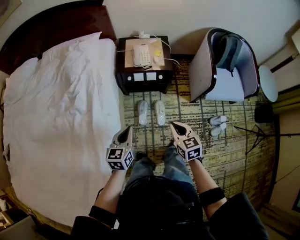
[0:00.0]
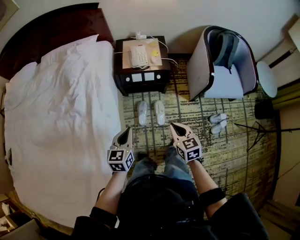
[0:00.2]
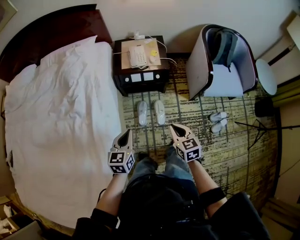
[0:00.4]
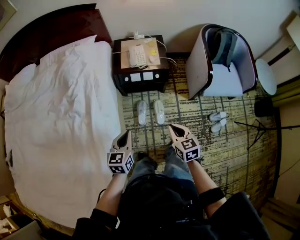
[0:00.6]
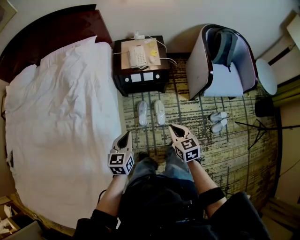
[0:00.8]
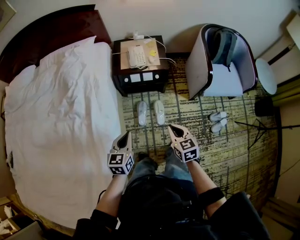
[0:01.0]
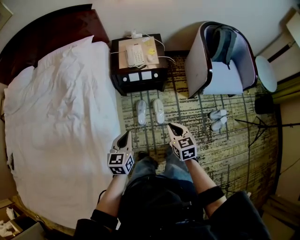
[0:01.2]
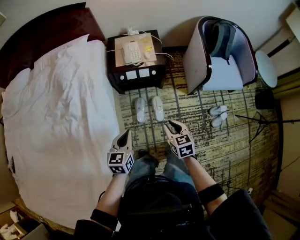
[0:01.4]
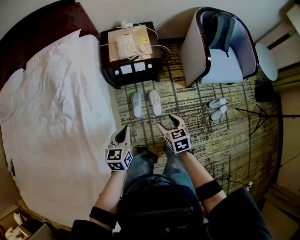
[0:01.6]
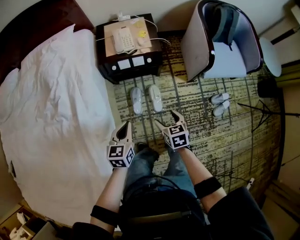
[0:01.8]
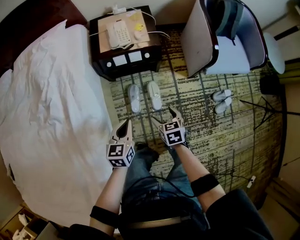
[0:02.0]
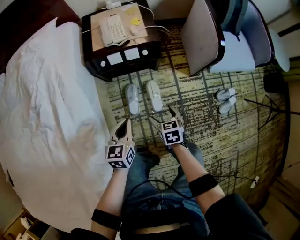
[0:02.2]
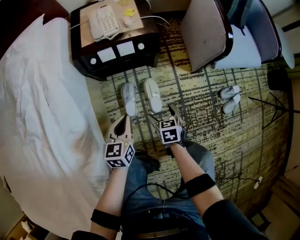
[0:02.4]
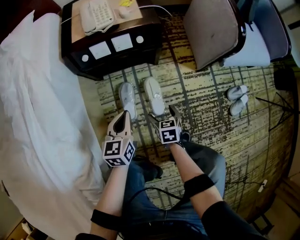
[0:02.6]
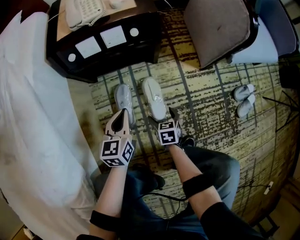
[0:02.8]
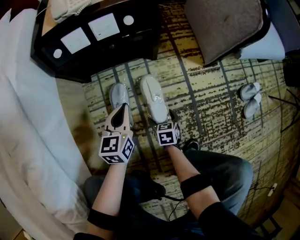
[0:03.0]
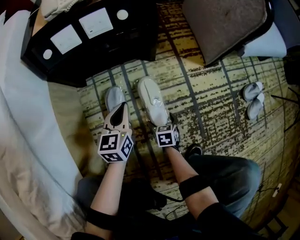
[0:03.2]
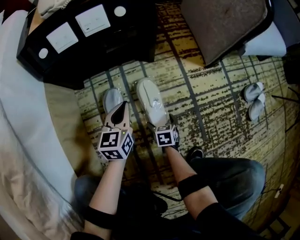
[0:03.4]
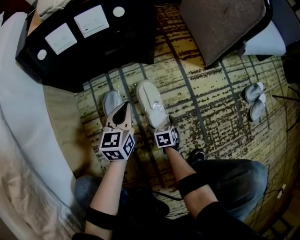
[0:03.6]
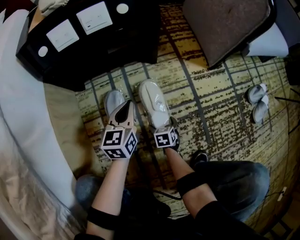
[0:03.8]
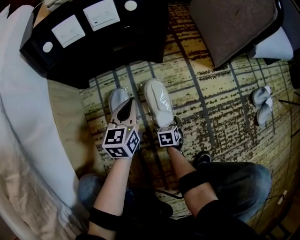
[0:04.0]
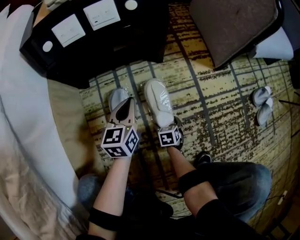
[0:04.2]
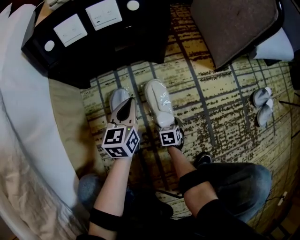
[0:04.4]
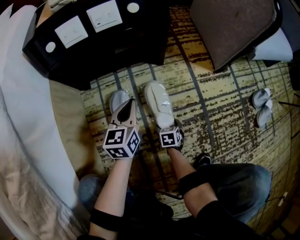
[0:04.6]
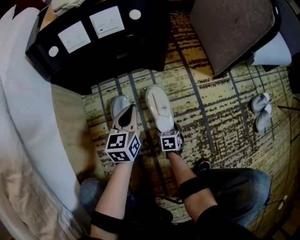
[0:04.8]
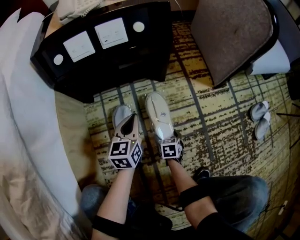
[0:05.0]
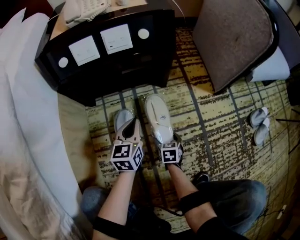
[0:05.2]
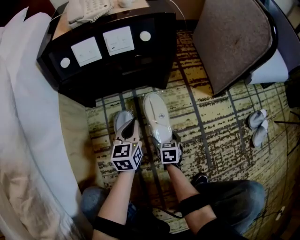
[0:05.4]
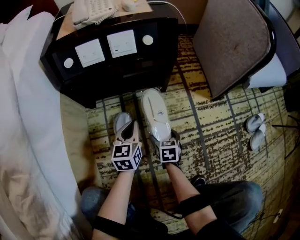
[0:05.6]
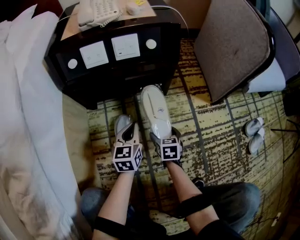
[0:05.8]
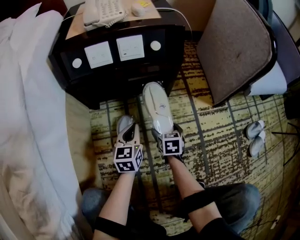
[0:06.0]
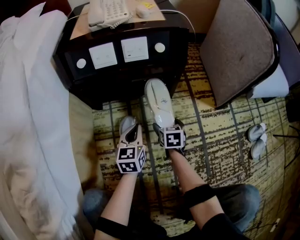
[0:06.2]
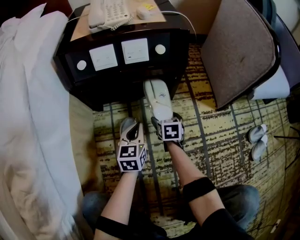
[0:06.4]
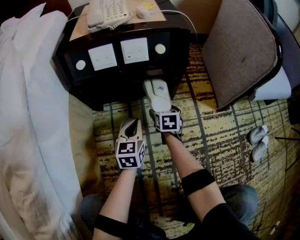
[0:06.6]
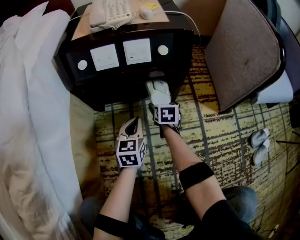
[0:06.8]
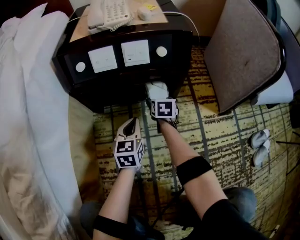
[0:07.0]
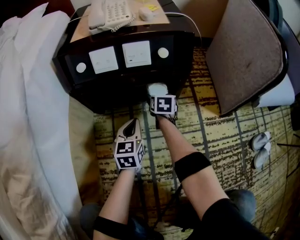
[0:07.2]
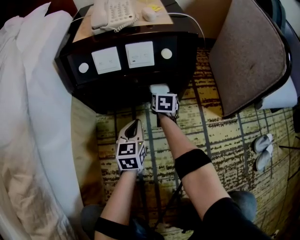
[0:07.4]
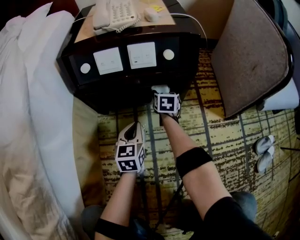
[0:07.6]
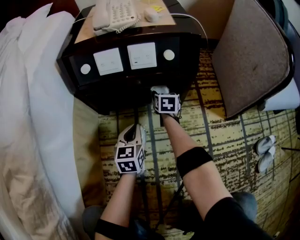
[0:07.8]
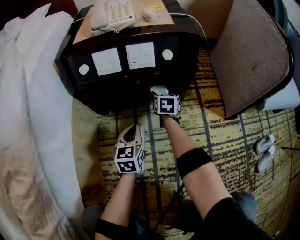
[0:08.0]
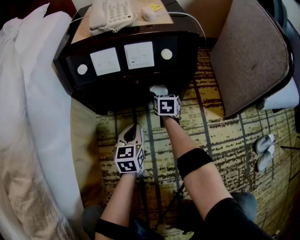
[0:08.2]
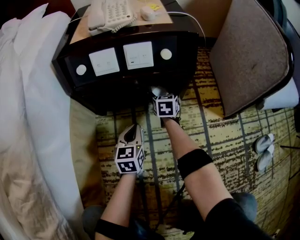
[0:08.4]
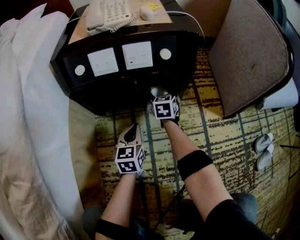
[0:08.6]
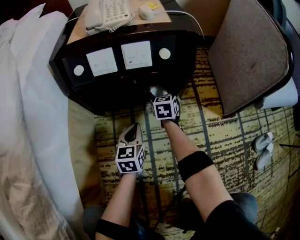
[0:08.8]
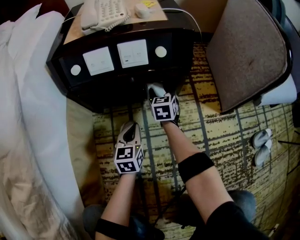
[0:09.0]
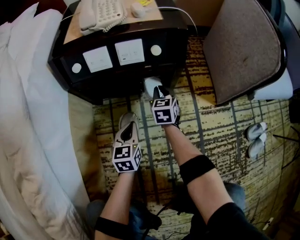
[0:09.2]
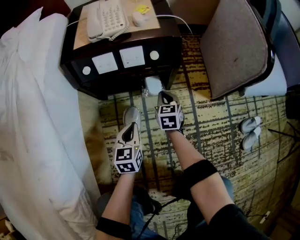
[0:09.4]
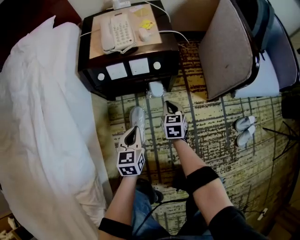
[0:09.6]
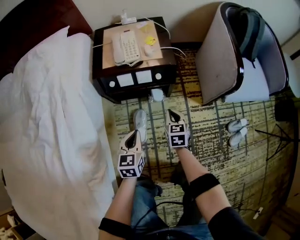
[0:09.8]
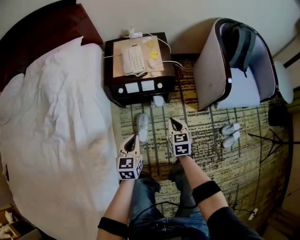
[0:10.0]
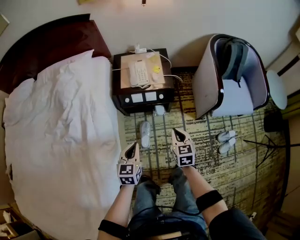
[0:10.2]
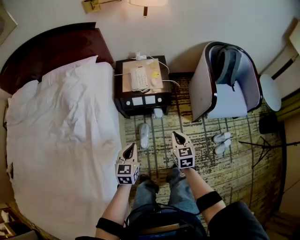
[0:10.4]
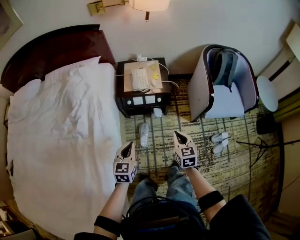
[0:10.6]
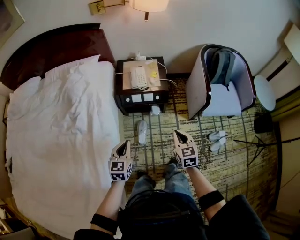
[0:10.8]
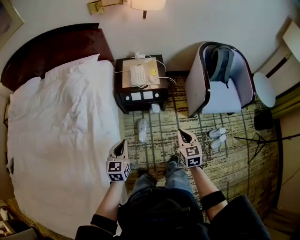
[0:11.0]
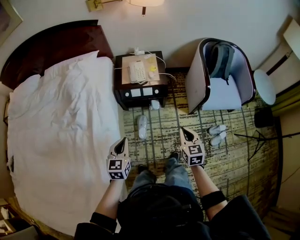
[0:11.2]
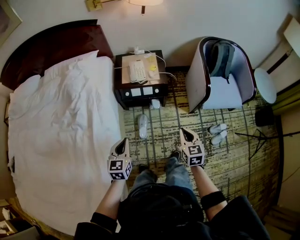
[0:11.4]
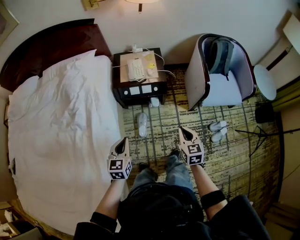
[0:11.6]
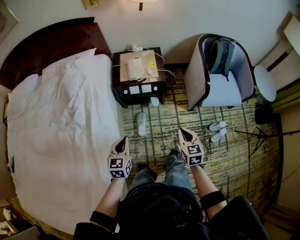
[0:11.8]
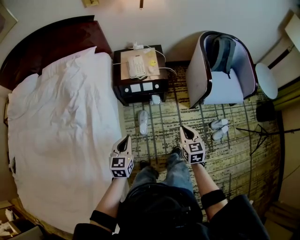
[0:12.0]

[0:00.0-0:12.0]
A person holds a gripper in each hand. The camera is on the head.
0:00.0 to 0:01.6: The right gripper heads downward, covering approximately 10 cm, and opens. The left gripper heads downward, covering approximately 5 cm.
0:01.6 to 0:03.0: The grippers both shift downward by roughly 60 cm. The right gripper opens.
0:03.0 to 0:04.4: The left gripper is displaced downward by roughly 10 cm, while the right gripper moves downward, some 15 cm.
0:04.4 to 0:06.0: The right gripper moves upward and forward, about 20 cm.
0:06.0 to 0:07.6: The right gripper shifts some 25 cm forward, while the left gripper heads forward, covering some 5 cm.
0:07.6 to 0:09.0: The grippers move only a little.
0:09.0 to 0:10.4: The right gripper shifts approximately 70 cm upward and backward, and closes up, while the left gripper shifts about 70 cm upward.
0:10.4 to 0:12.0: The two grippers go roughly 10 cm backward.

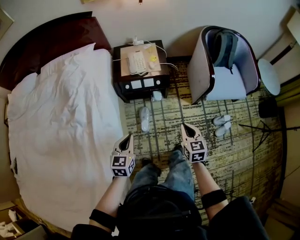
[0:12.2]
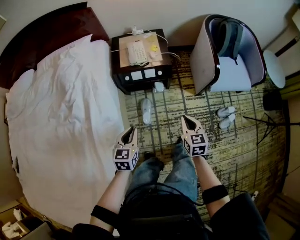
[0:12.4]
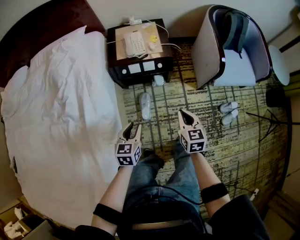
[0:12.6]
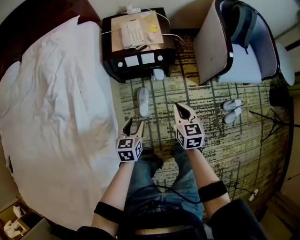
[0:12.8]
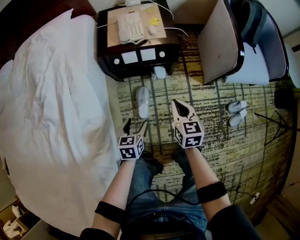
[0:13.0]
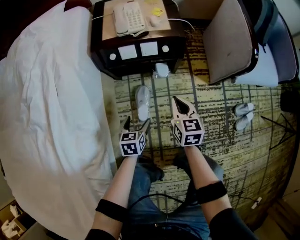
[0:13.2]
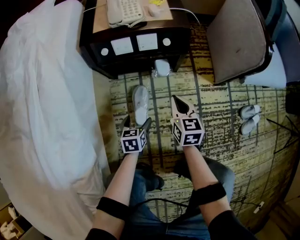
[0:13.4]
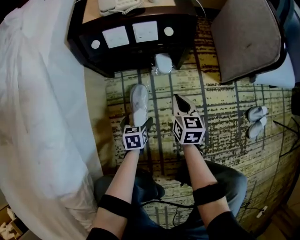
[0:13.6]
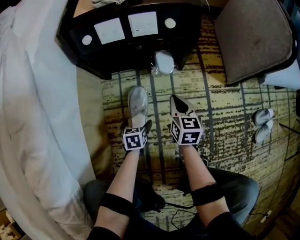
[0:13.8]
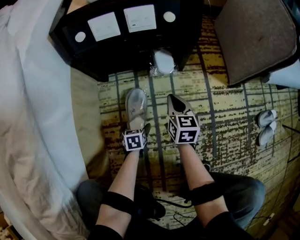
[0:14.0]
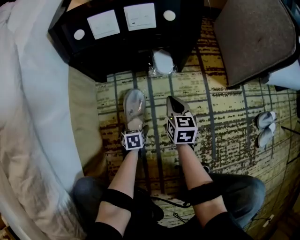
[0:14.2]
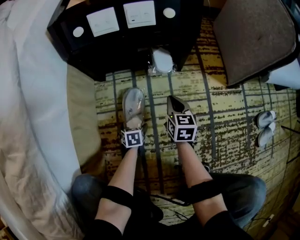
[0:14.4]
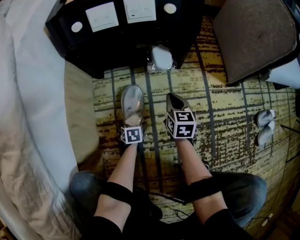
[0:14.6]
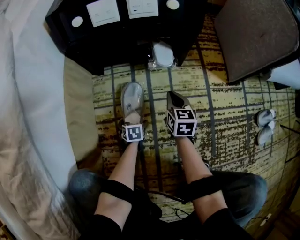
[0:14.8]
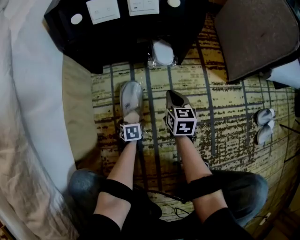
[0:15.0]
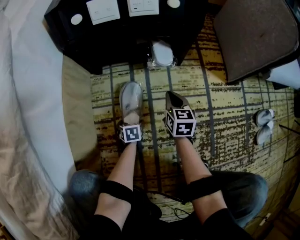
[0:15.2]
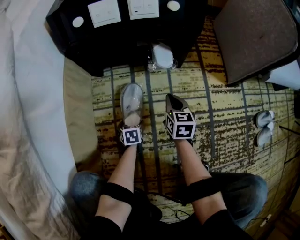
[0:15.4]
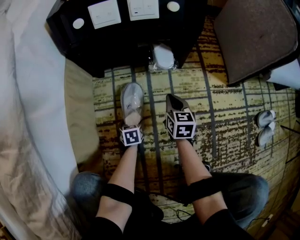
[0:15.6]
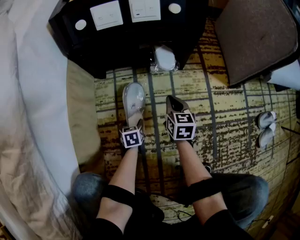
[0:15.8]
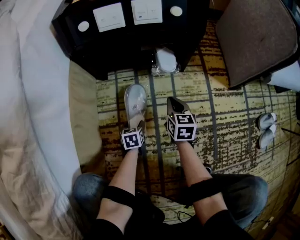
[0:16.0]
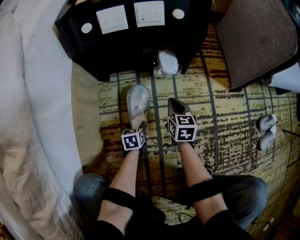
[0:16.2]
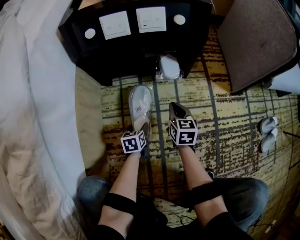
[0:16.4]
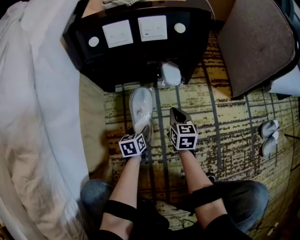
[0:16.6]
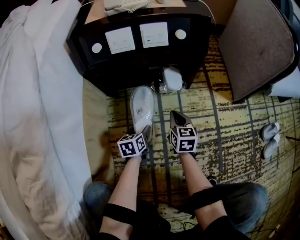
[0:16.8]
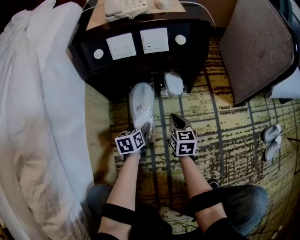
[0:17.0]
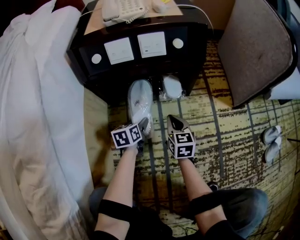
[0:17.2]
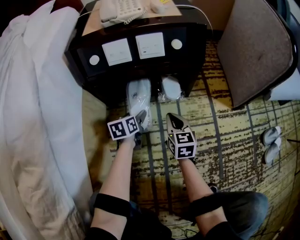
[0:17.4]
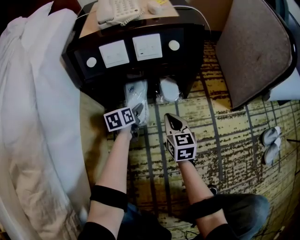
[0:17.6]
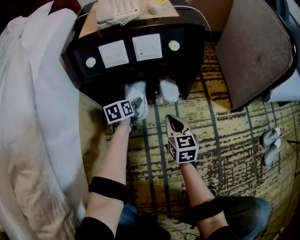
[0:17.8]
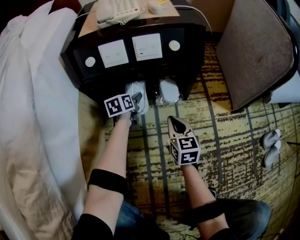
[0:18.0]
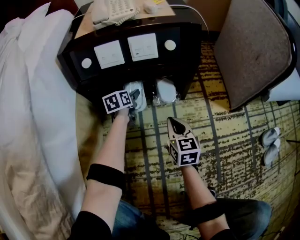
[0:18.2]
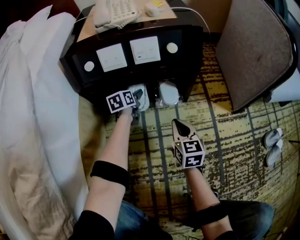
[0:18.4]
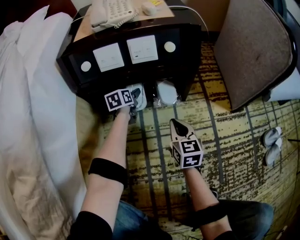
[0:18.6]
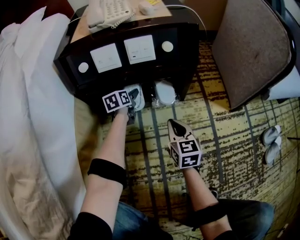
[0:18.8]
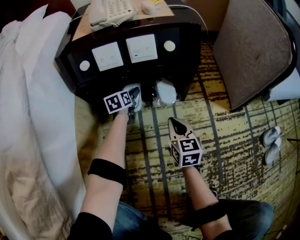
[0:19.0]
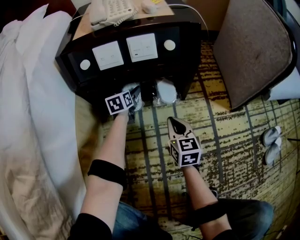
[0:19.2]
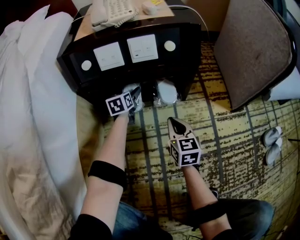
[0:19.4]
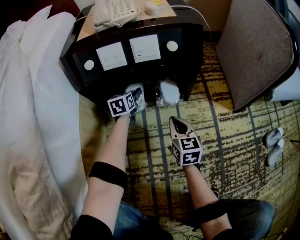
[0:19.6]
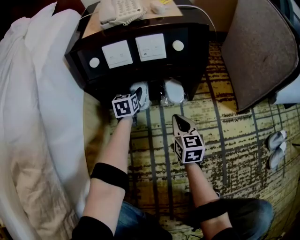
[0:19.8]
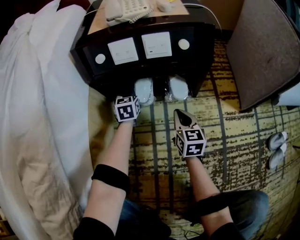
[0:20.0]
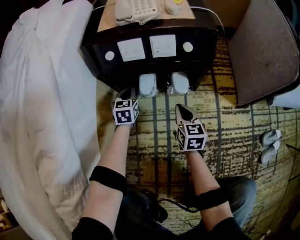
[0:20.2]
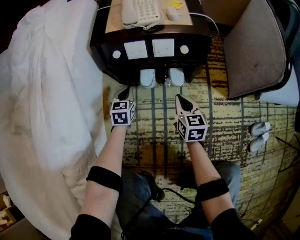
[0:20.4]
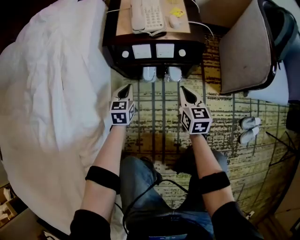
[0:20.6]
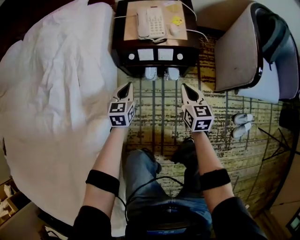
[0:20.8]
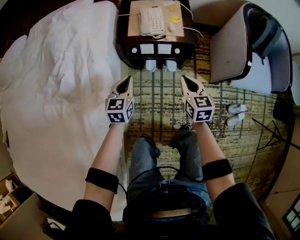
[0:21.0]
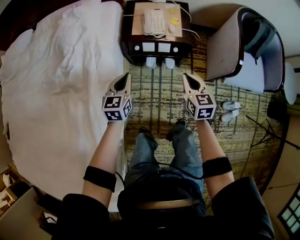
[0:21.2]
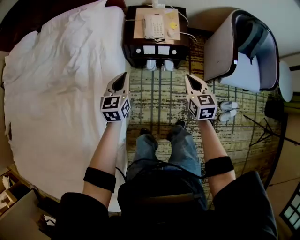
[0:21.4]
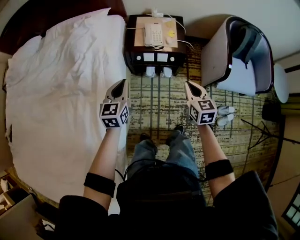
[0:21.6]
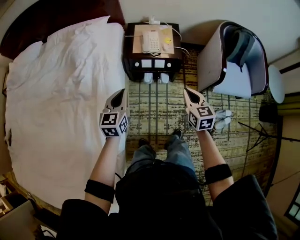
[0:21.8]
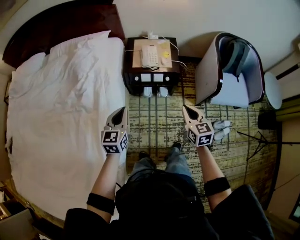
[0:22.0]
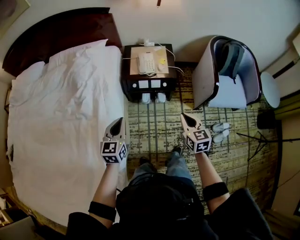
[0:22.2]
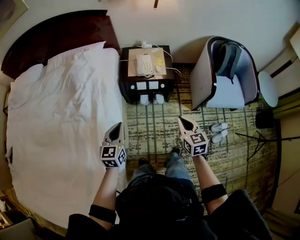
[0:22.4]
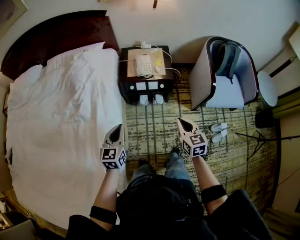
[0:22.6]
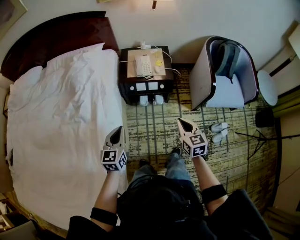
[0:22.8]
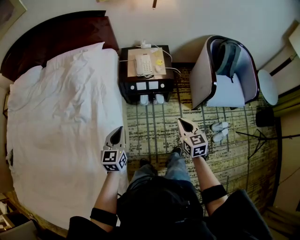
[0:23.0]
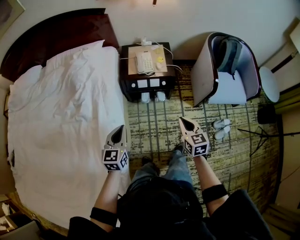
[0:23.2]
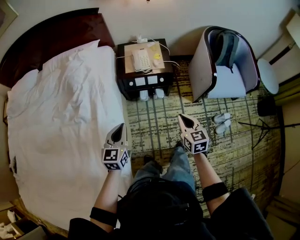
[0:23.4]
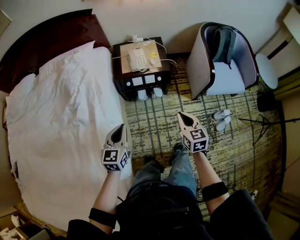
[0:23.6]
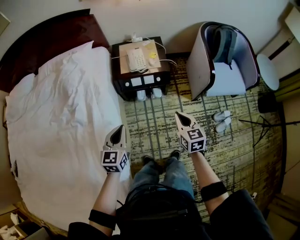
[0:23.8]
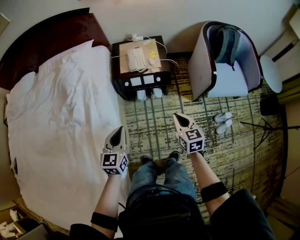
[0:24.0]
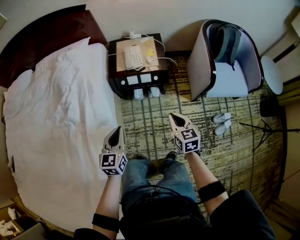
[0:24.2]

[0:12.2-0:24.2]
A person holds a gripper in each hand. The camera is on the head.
0:12.2 to 0:13.8: The grippers both shift downward by roughly 70 cm. The left gripper changes its angle by roughly 30 degrees, and opens its fingers.
0:13.8 to 0:15.2: The two grippers go some 15 cm downward.
0:15.2 to 0:16.6: The left gripper moves upward, approximately 10 cm.
0:16.6 to 0:18.2: The right gripper moves upward, about 5 cm, while the left gripper goes roughly 25 cm forward.
0:18.2 to 0:19.8: The left gripper changes its angle by about 20 degrees.
0:19.8 to 0:21.2: The left gripper goes approximately 70 cm upward and backward, and closes. The right gripper travels upward by about 60 cm.
0:21.2 to 0:22.6: The grippers both shift backward and upward by approximately 20 cm.
0:22.6 to 0:24.2: The left gripper goes about 10 cm to the right and downward; the right gripper shifts some 10 cm downward.
